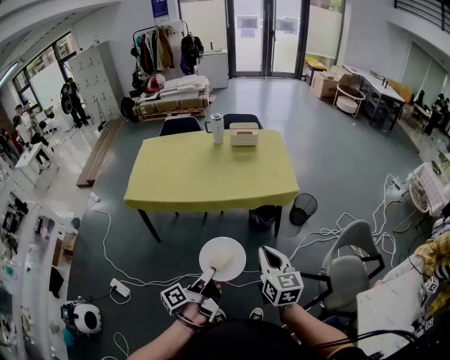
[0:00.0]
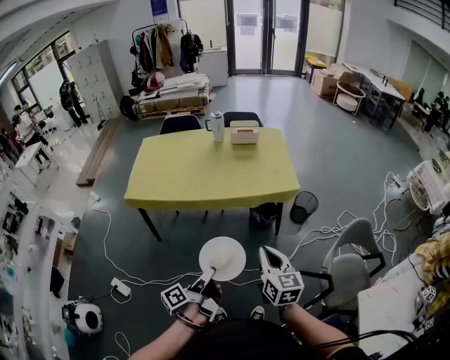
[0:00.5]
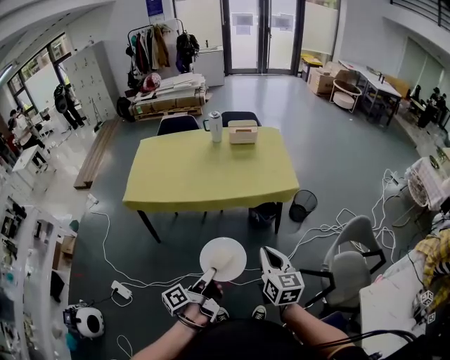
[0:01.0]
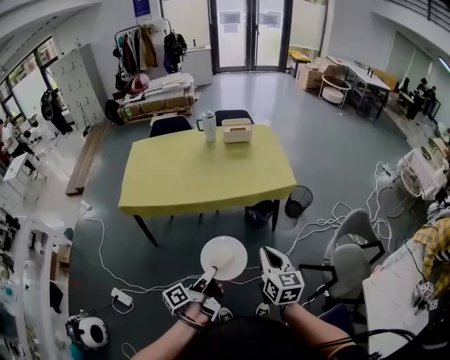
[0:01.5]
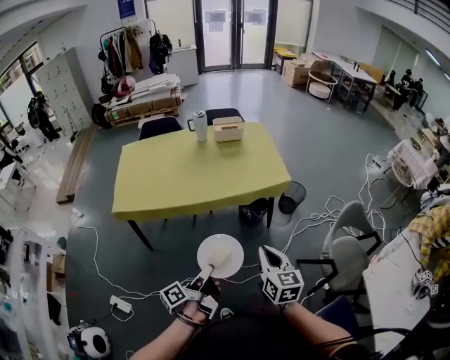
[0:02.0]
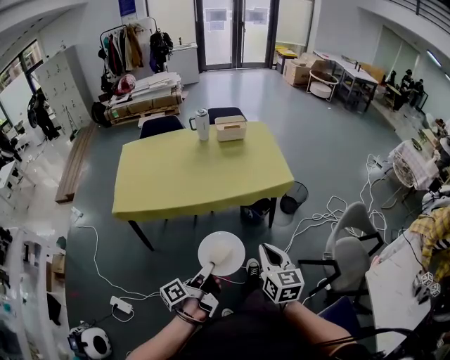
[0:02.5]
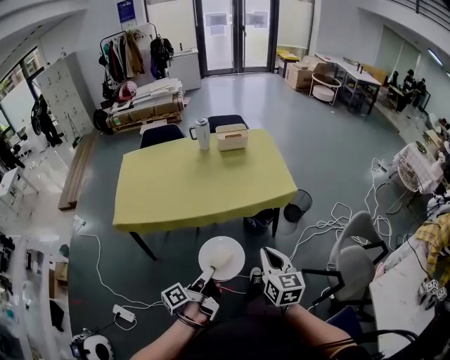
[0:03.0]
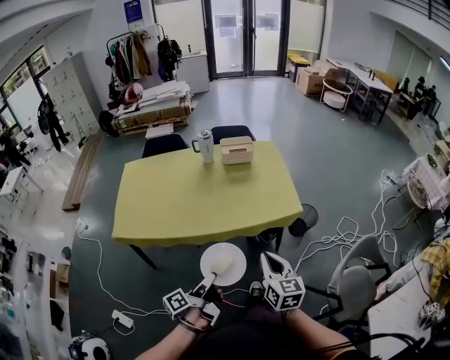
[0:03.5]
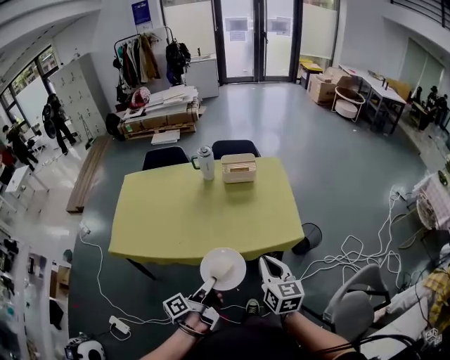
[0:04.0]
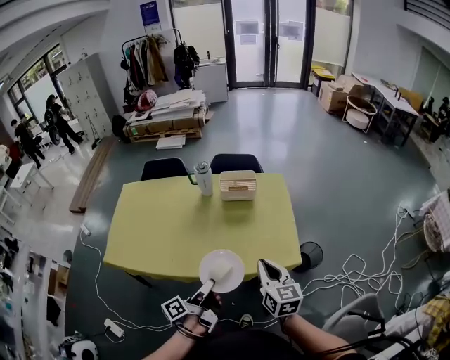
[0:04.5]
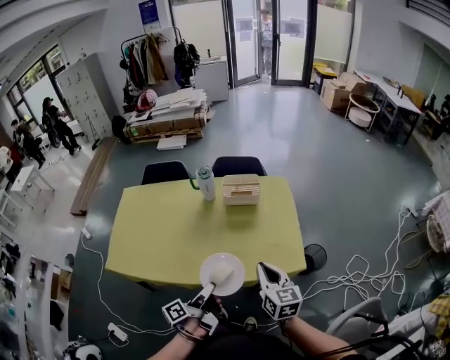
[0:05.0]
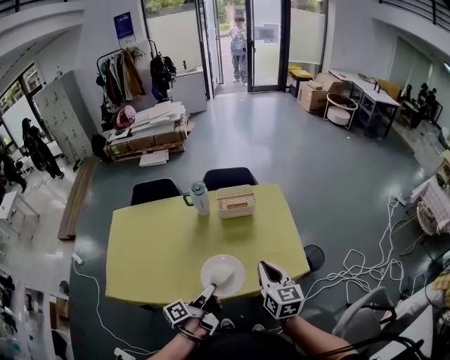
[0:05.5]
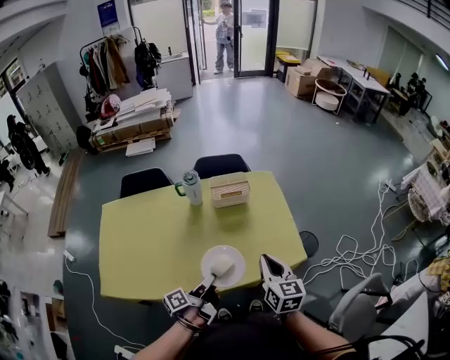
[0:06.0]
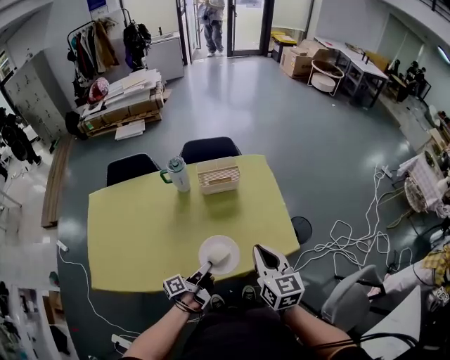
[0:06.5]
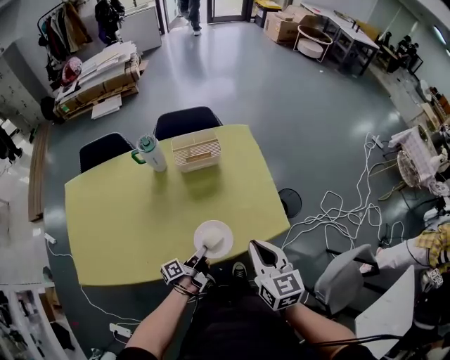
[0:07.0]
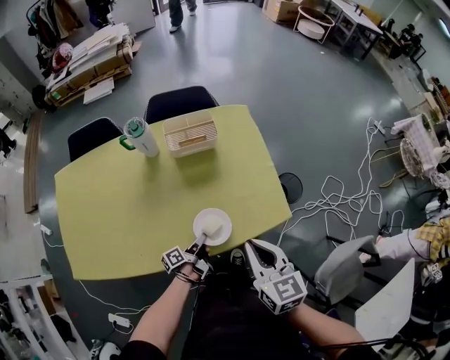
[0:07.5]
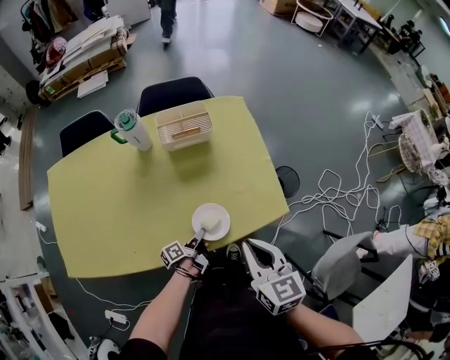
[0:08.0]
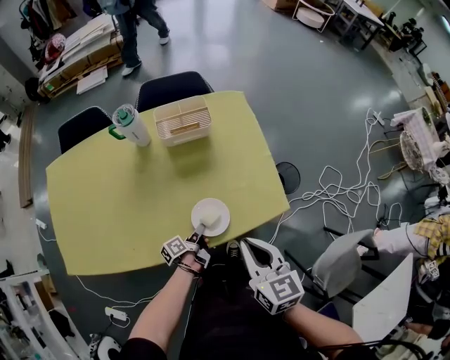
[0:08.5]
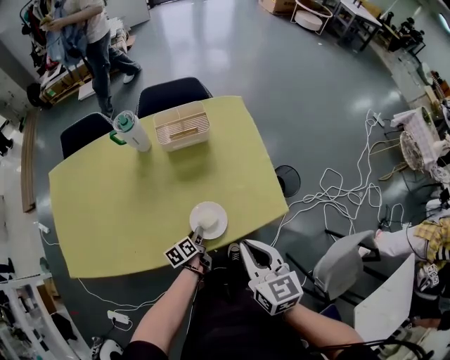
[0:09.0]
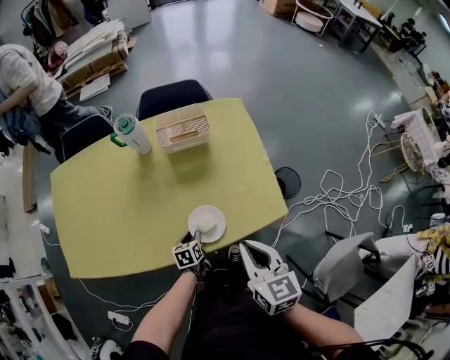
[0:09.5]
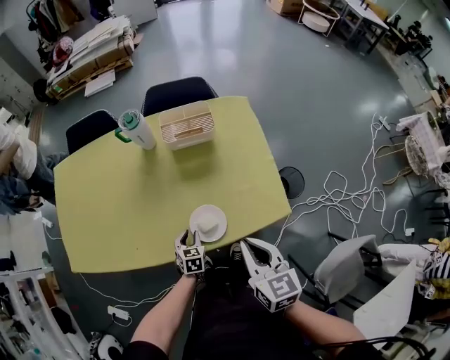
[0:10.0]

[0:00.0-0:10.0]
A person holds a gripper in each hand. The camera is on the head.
0.0 to 2.0 s: The right gripper moves about 5 cm.
2.0 to 4.0 s: The right gripper changes place by approximately 30 cm.
4.0 to 6.0 s: The right gripper ends up about 20 cm from where it was.
6.0 to 8.0 s: The right gripper moves downward, roughly 10 cm.

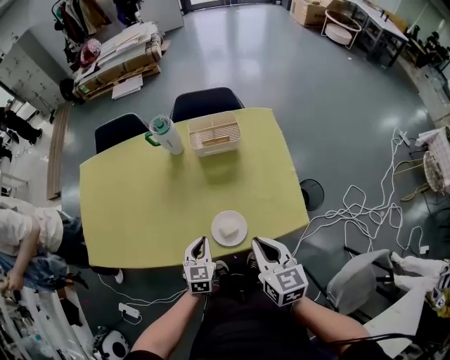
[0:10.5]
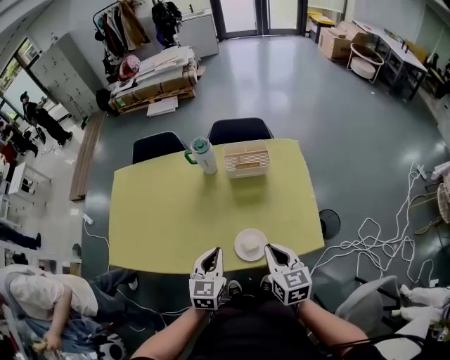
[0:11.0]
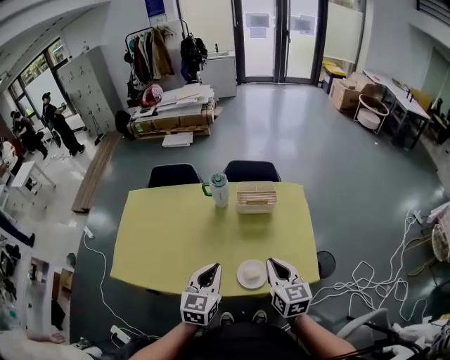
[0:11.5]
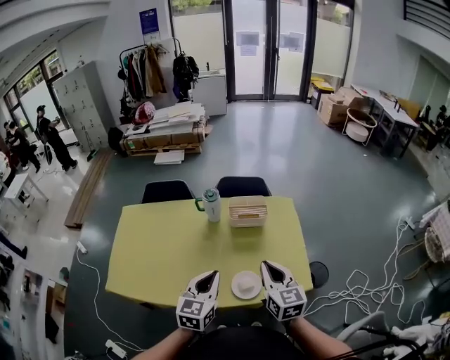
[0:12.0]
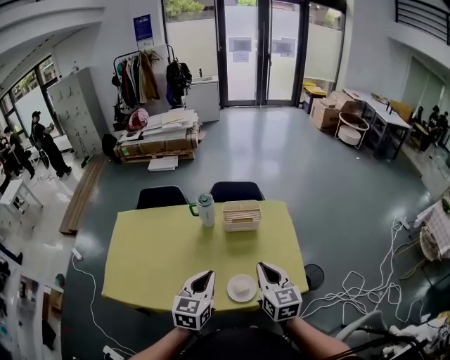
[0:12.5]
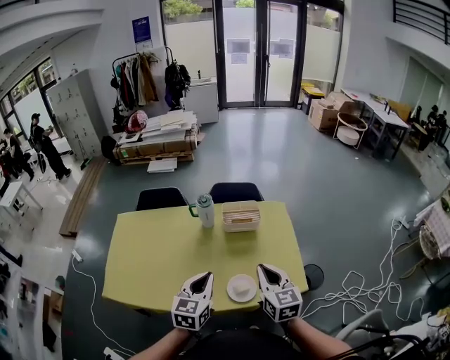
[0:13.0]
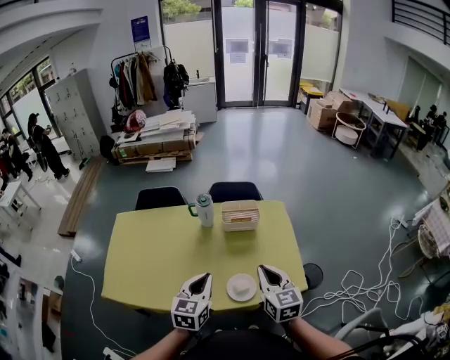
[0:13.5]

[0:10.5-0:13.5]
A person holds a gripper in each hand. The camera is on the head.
10.5 to 12.0 s: The right gripper goes roughly 15 cm upward.

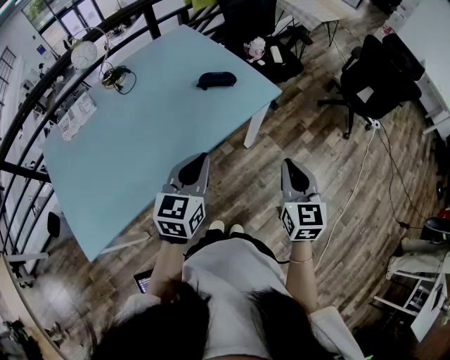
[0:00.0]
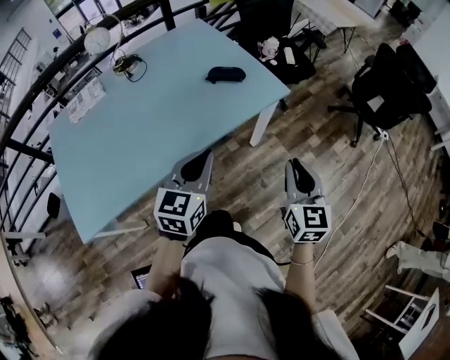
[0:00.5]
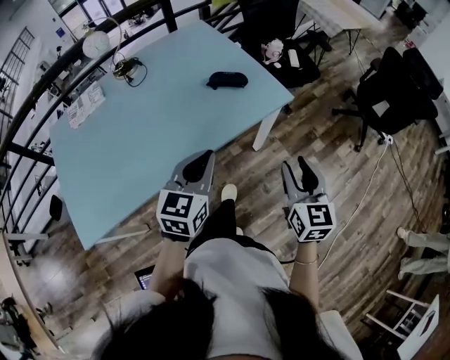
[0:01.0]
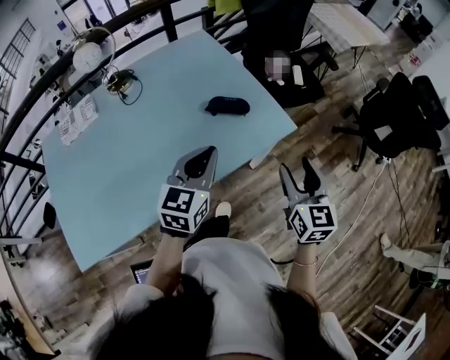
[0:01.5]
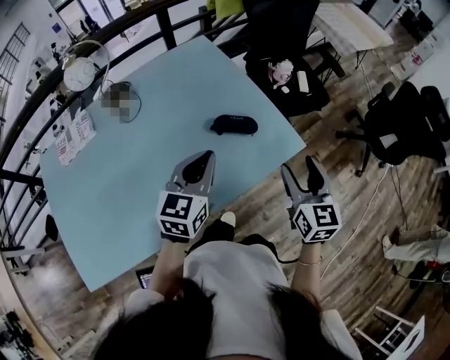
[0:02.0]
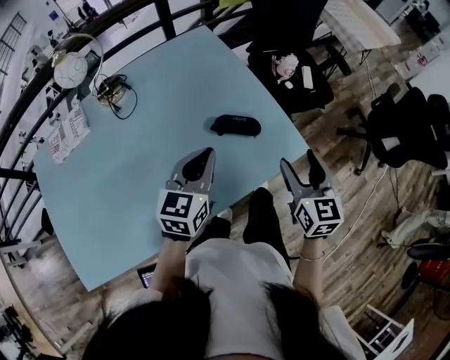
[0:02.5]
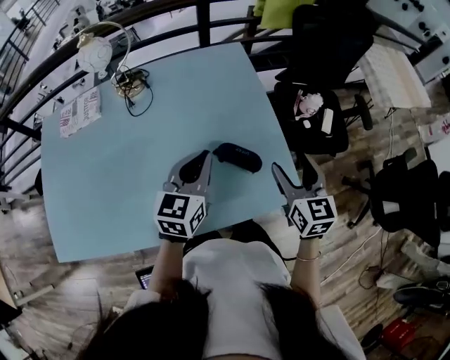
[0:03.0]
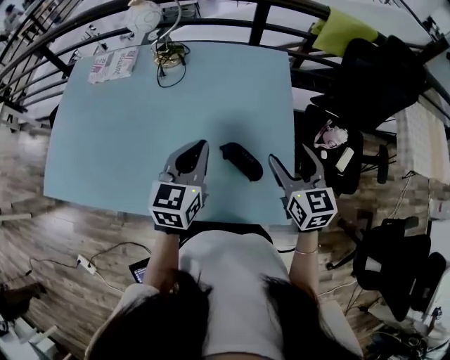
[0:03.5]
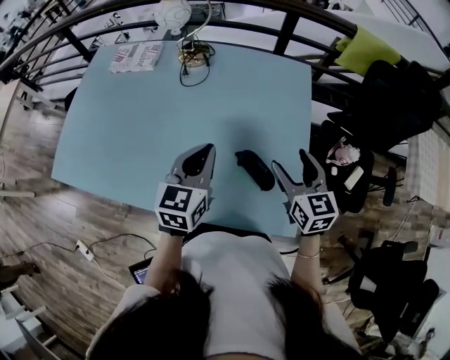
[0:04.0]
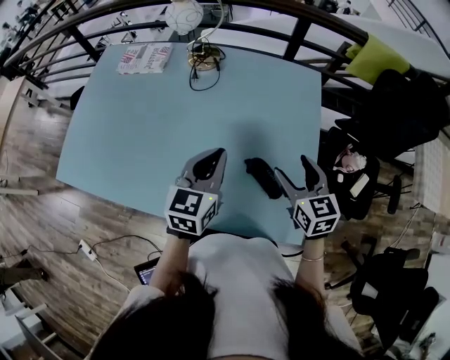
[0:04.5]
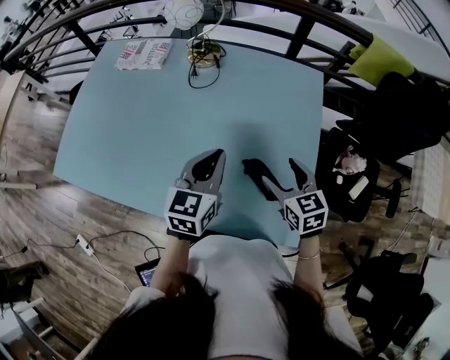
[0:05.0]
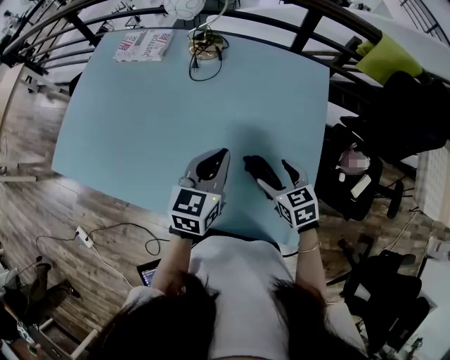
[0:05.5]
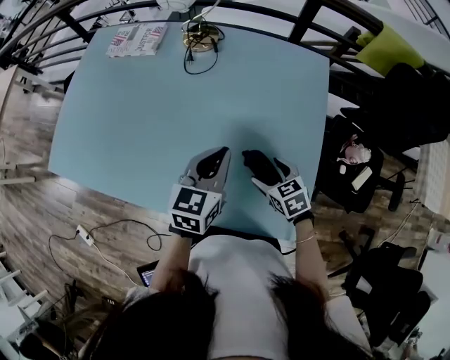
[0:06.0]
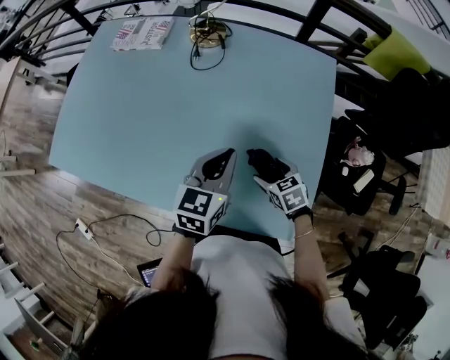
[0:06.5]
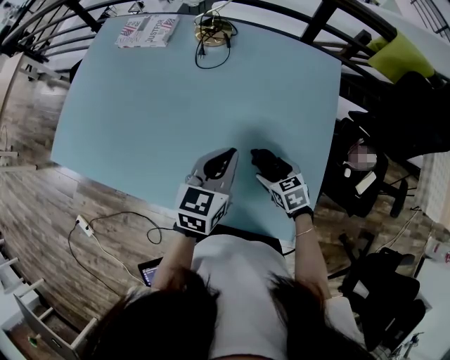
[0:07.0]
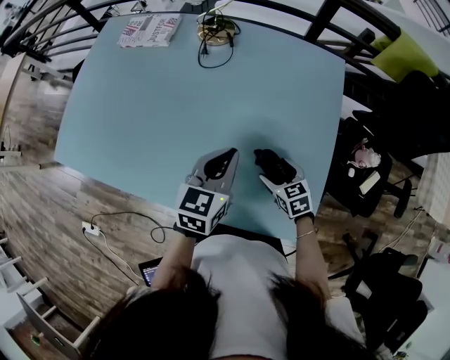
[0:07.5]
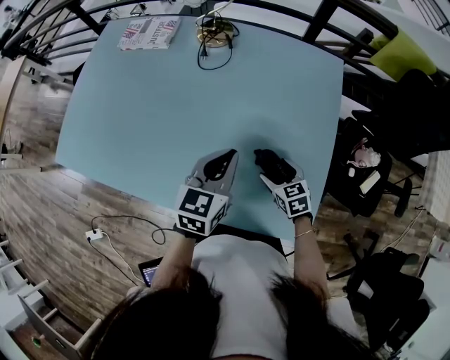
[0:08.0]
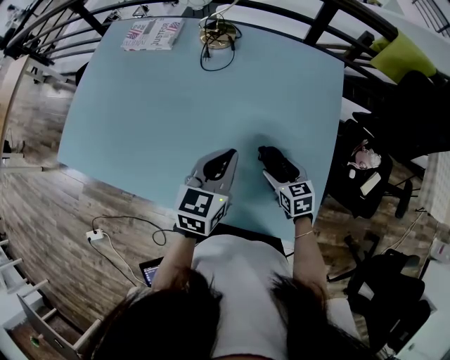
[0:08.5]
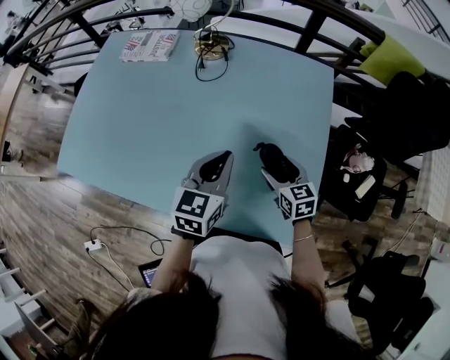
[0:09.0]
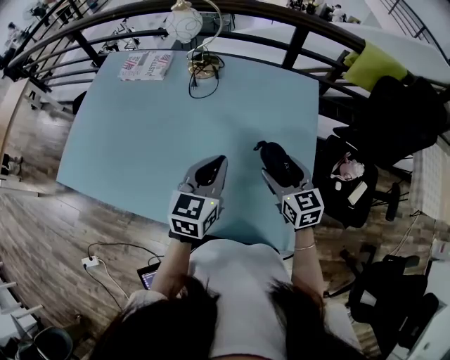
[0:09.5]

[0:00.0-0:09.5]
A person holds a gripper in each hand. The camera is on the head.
0.0 to 2.0 s: Both grippers move forward, roughly 25 cm. The right gripper opens up.
2.0 to 4.0 s: The right gripper changes place by approximately 25 cm, and changes its angle by roughly 50 degrees. Meanwhile the left gripper shifts by approximately 10 cm, and turns by some 40 degrees.
4.0 to 5.5 s: The right gripper is displaced downward and to the left by approximately 15 cm, and rotates approximately 30 degrees.
5.5 to 7.5 s: The right gripper shifts roughly 10 cm downward.
7.5 to 9.5 s: The right gripper shifts approximately 15 cm upward, and rotates some 30 degrees. Meanwhile the left gripper goes approximately 5 cm upward.

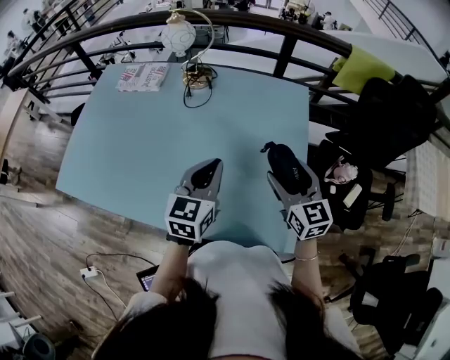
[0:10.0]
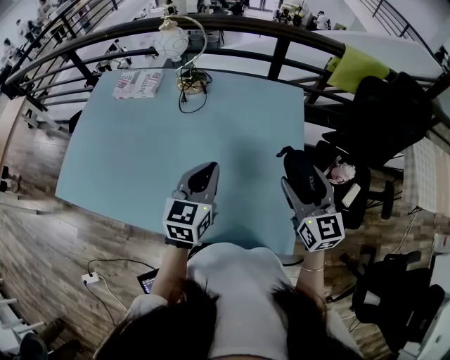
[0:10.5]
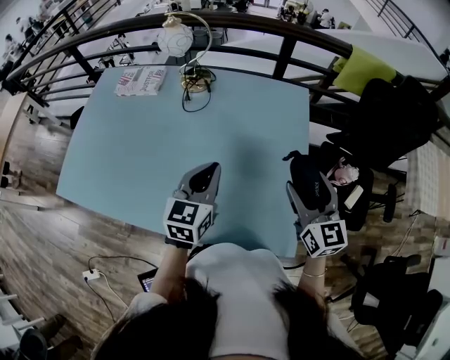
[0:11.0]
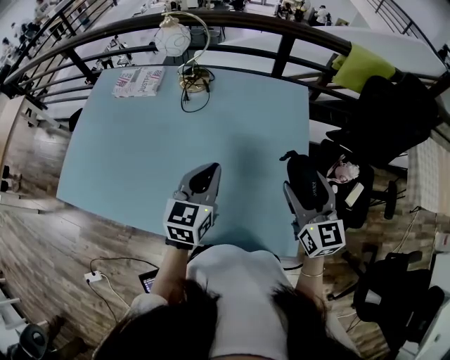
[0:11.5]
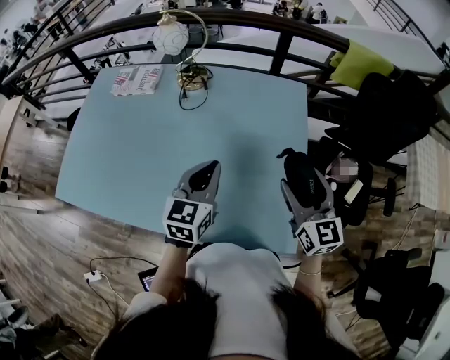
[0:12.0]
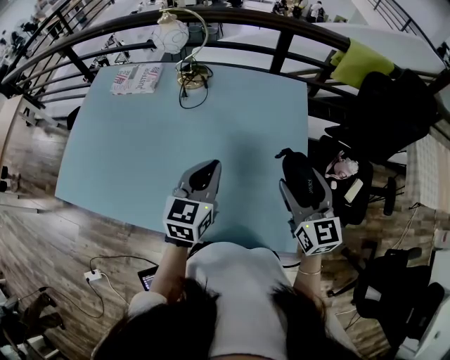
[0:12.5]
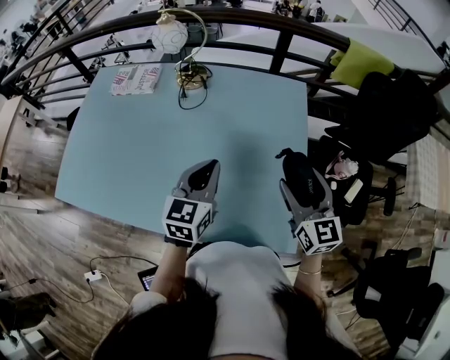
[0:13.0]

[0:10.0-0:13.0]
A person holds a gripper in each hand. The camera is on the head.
10.0 to 11.5 s: The right gripper ends up some 5 cm from where it was.
11.5 to 13.0 s: Both grippers stay about where they are.

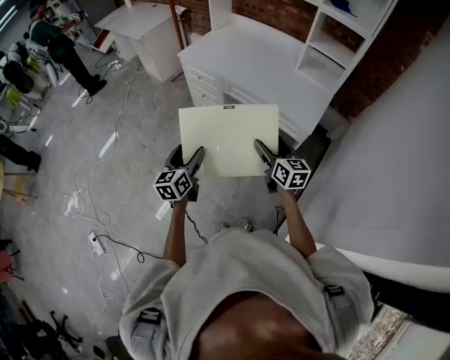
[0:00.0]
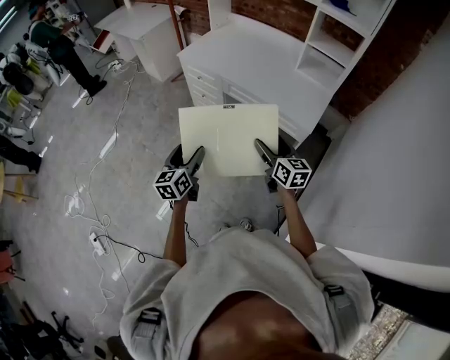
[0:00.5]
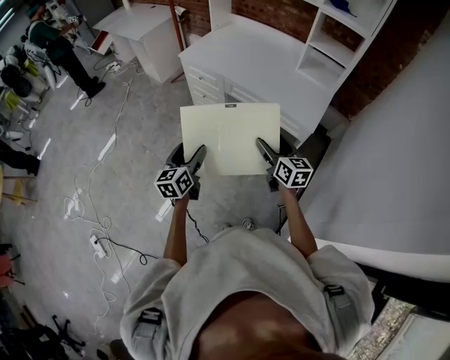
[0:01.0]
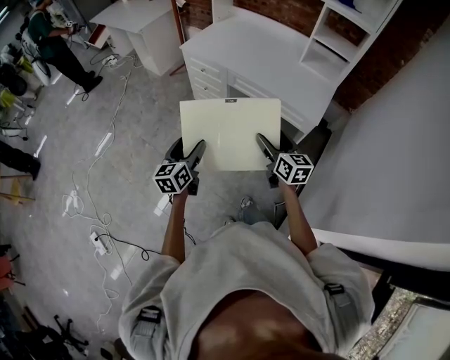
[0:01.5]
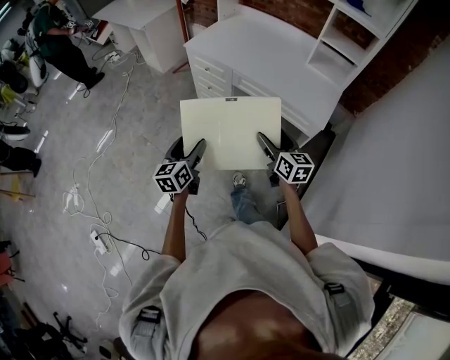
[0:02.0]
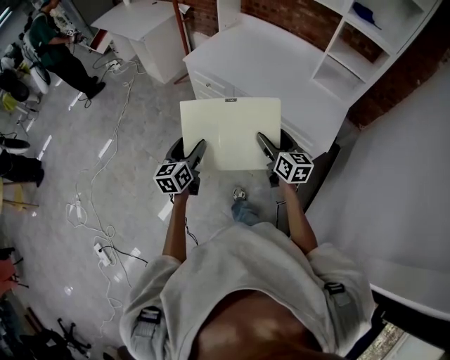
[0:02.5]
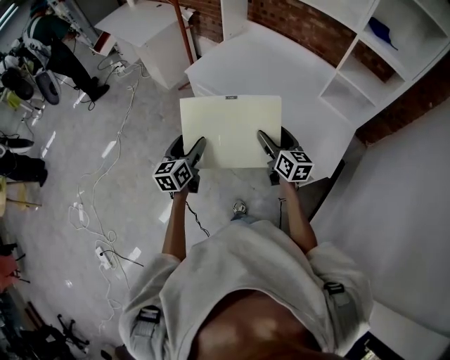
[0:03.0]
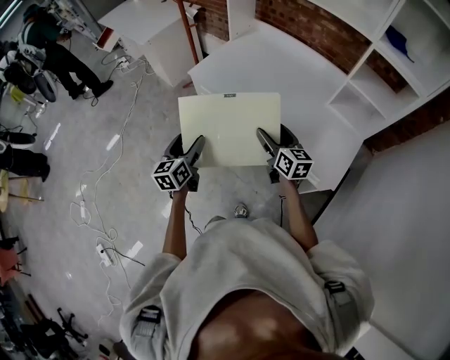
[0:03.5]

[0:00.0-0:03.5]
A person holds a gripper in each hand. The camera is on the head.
0.0 to 2.0 s: Both grippers move to the left, some 5 cm.
2.0 to 3.5 s: The two grippers go about 30 cm forward.
